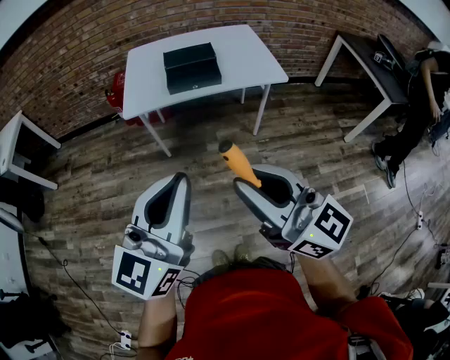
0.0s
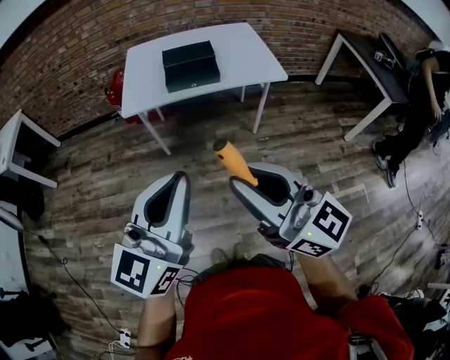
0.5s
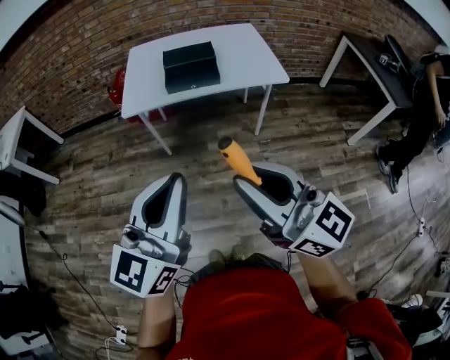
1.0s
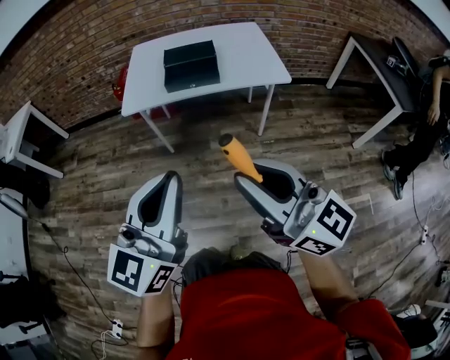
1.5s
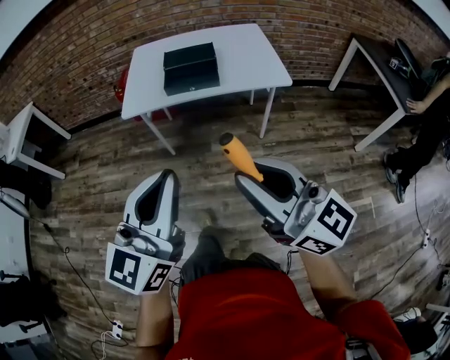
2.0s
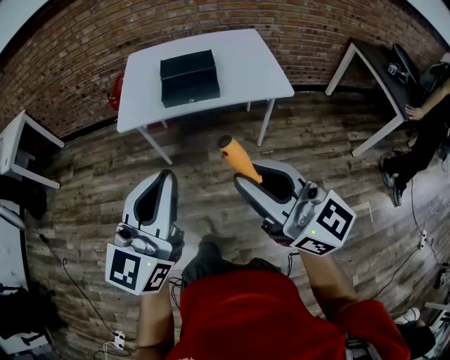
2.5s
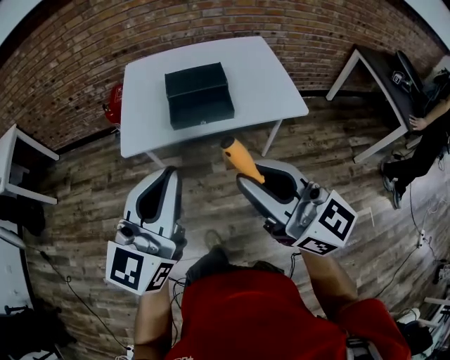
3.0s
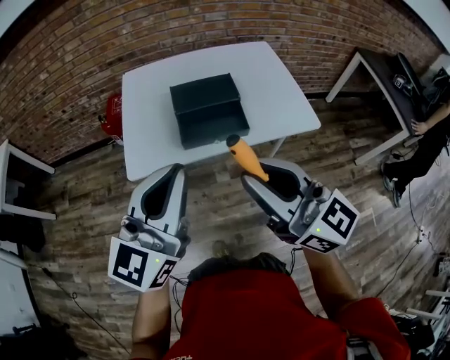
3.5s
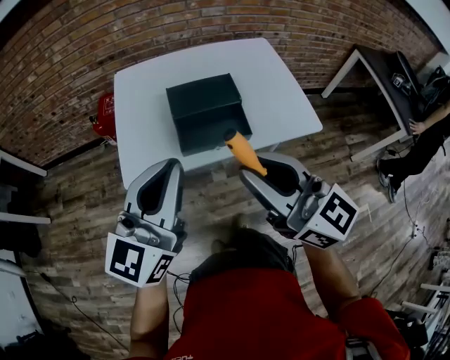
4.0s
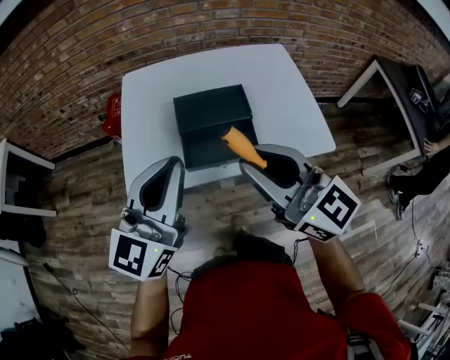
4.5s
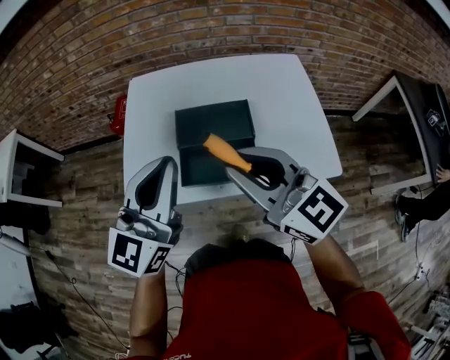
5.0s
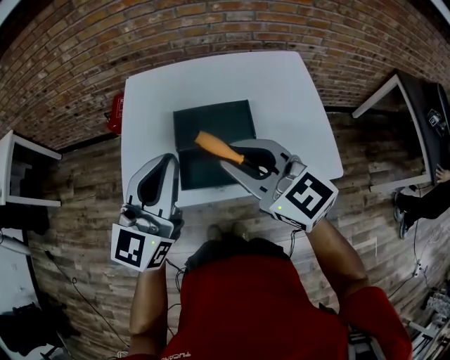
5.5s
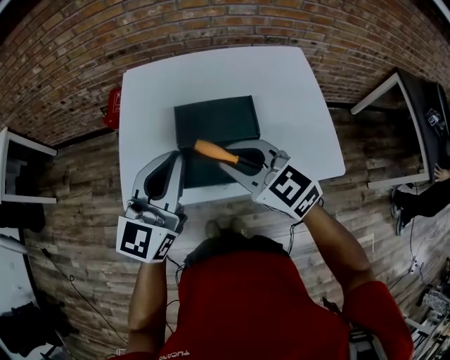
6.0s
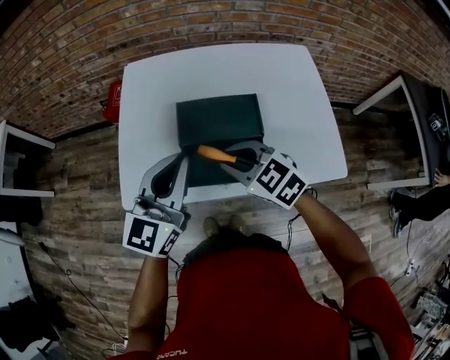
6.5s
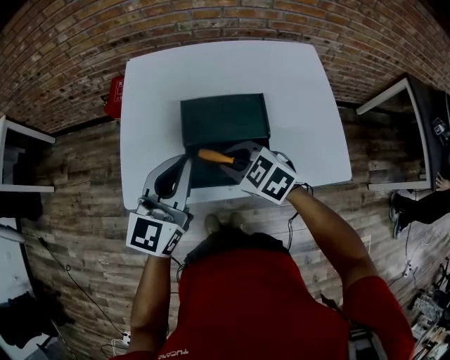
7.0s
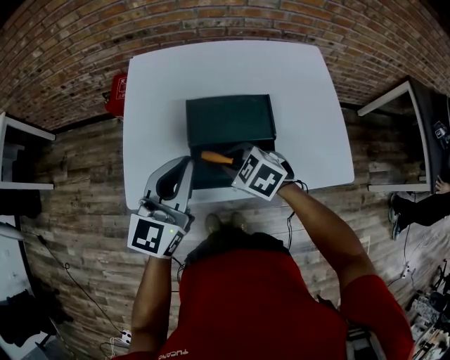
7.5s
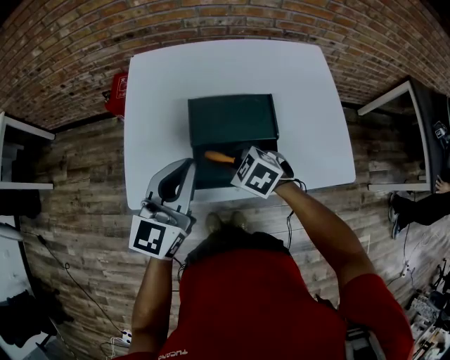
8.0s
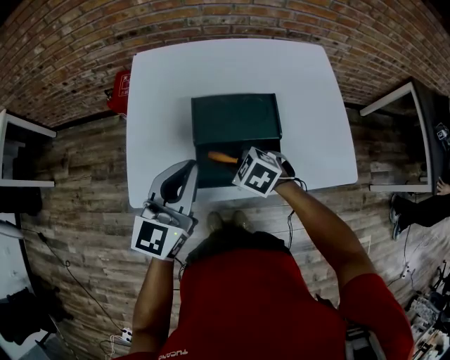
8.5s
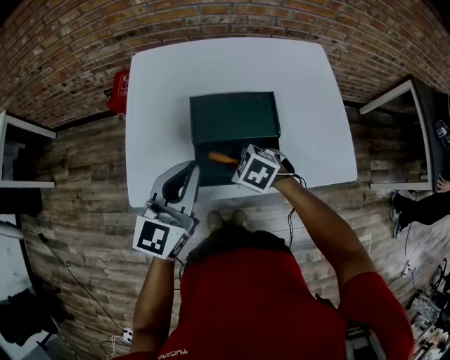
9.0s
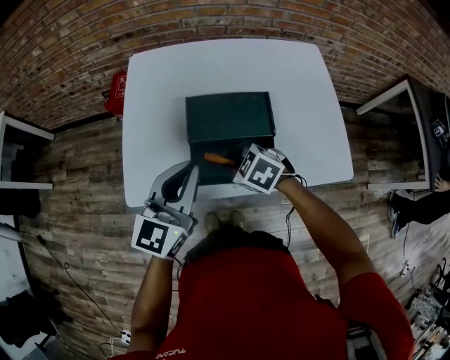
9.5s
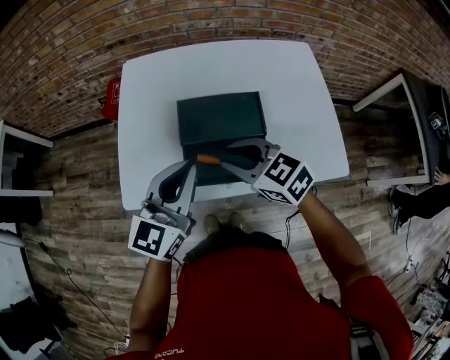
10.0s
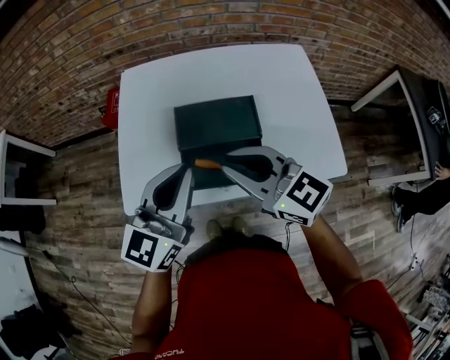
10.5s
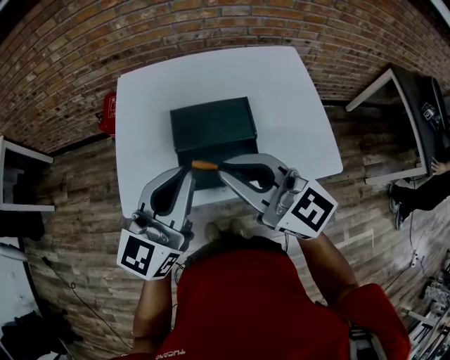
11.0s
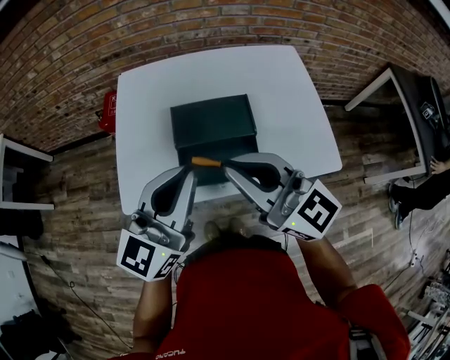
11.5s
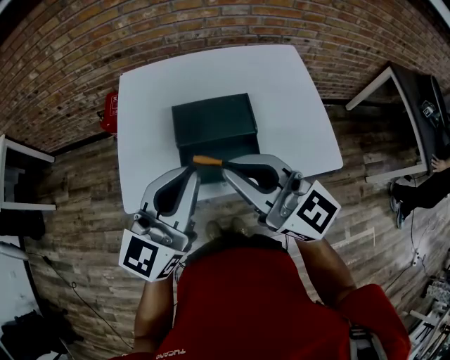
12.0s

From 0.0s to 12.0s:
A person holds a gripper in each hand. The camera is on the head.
From 0.0s to 2.0s: The two grippers go some 10 cm to the right.
From 2.0s to 4.0s: The two grippers go about 40 cm forward.
From 4.0s to 6.0s: The left gripper travels forward by roughly 20 cm, while the right gripper moves forward and downward, some 25 cm, and rotates about 40 degrees.
From 6.0s to 8.0s: The left gripper heads downward, covering about 5 cm; the right gripper moves downward, some 20 cm, and points its fingers approximately 30 degrees further downward.
From 8.0s to 10.0s: The right gripper goes about 10 cm upward, and changes its angle by some 30 degrees.
From 10.0s to 12.0s: The left gripper heads upward and backward, covering roughly 10 cm. Meanwhile the right gripper moves upward and backward, roughly 15 cm, and angles its fingers upward, by some 40 degrees.

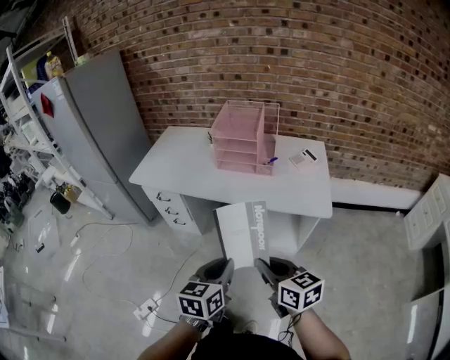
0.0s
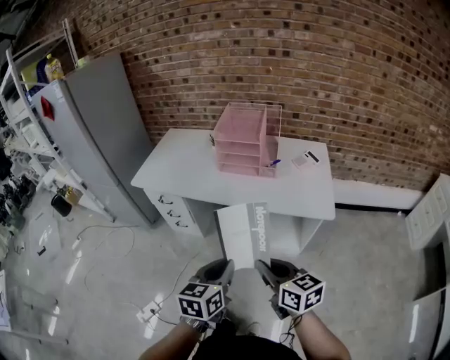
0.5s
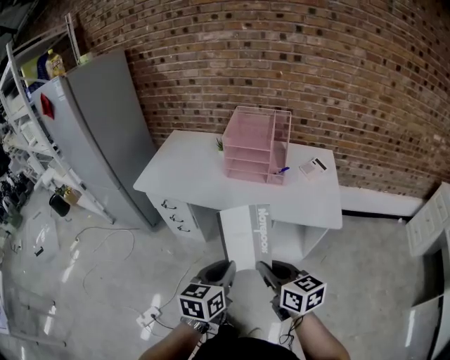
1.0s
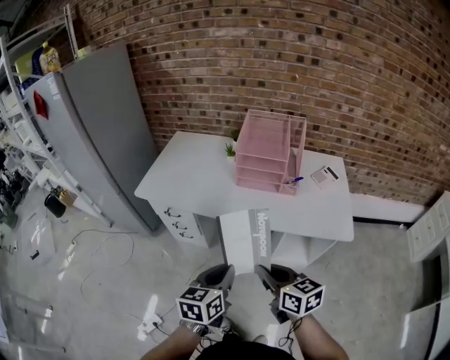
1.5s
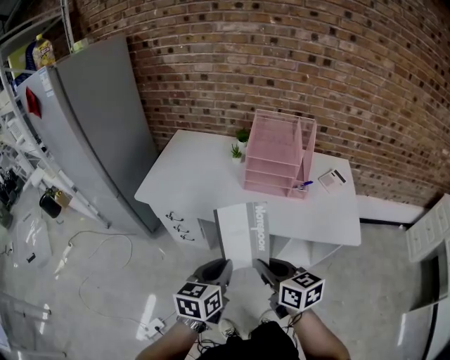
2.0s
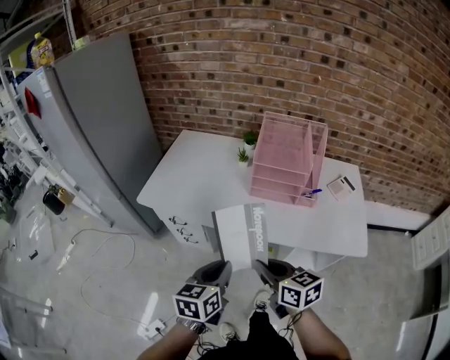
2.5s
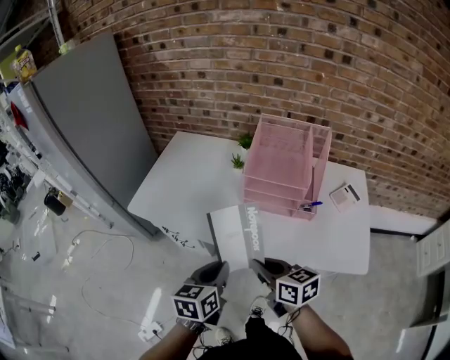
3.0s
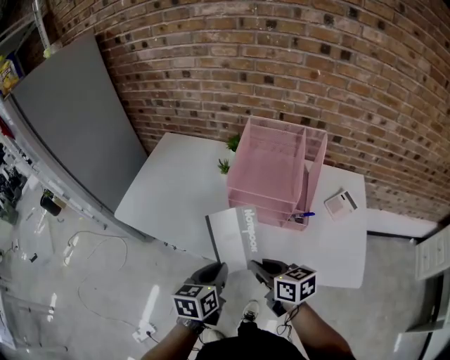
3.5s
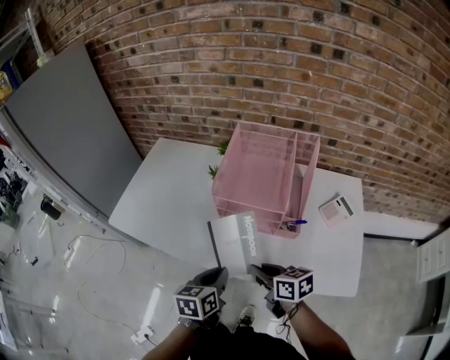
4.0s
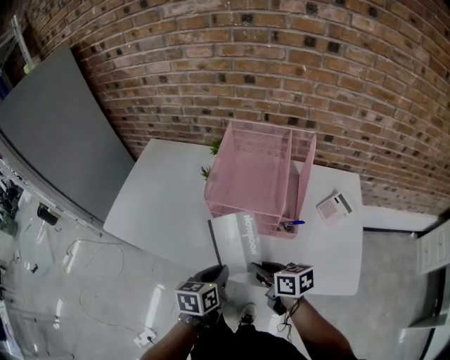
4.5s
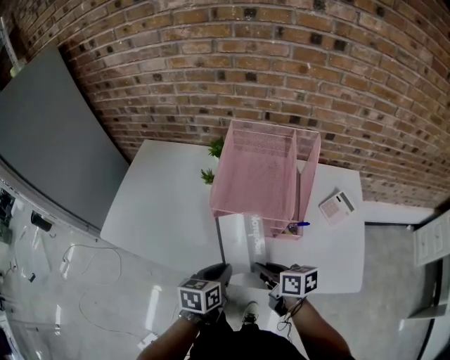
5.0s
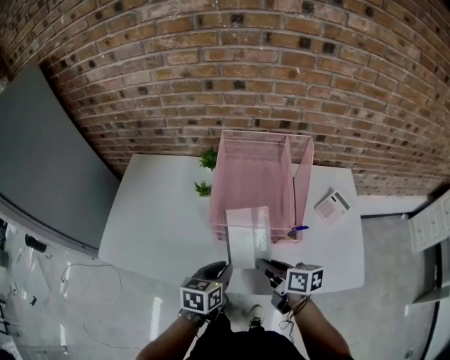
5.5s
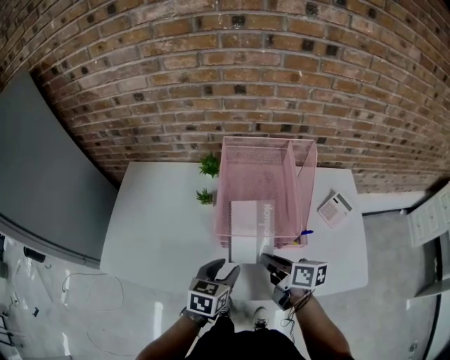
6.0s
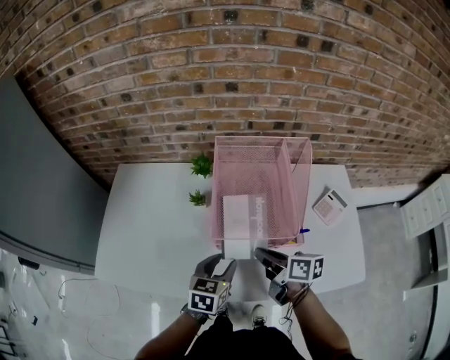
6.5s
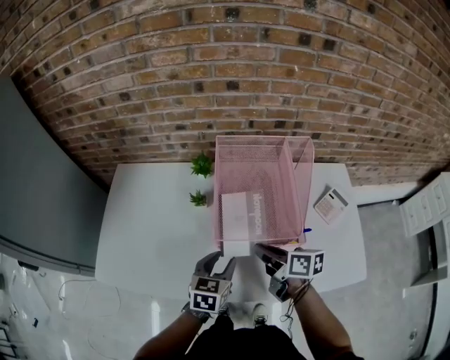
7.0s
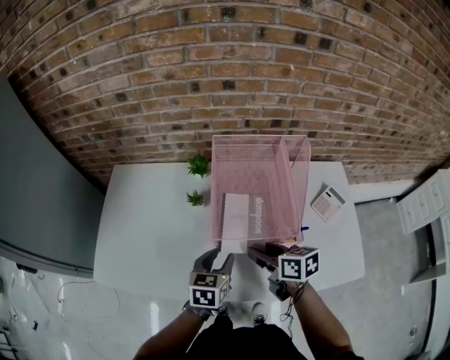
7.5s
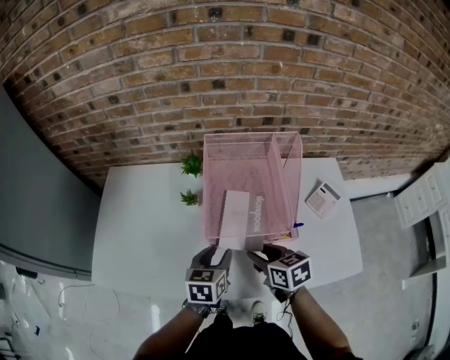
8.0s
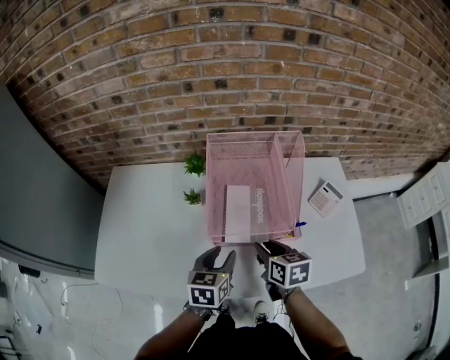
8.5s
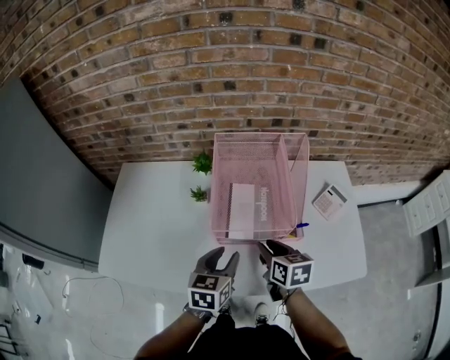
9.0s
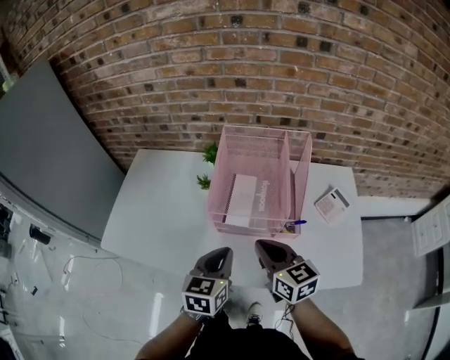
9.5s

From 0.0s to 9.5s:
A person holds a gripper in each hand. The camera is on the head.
From 0.0s to 2.0s: The grippers both shift forward and to the left by some 25 cm.
From 2.0s to 4.0s: Both grippers travel together forward, to the right and downward, approximately 25 cm.
From 4.0s to 5.5s: The two grippers go roughly 10 cm forward. The right gripper turns by approximately 20 degrees.
From 5.5s to 7.5s: The two grippers go about 10 cm forward. The right gripper opens up. Meanwhile the left gripper opens its fingers.
From 7.5s to 9.5s: Both grippers travel together upward and backward, roughly 10 cm. The left gripper closes up. Meanwhile the right gripper rotates roughly 30 degrees, and closes.

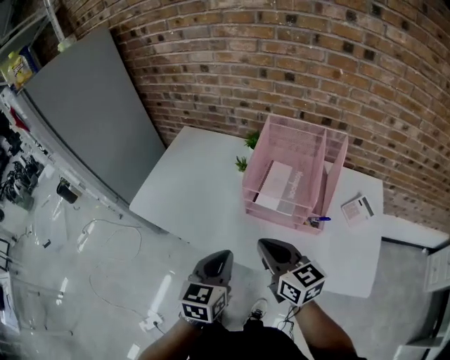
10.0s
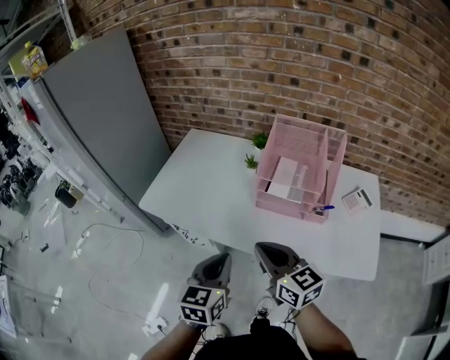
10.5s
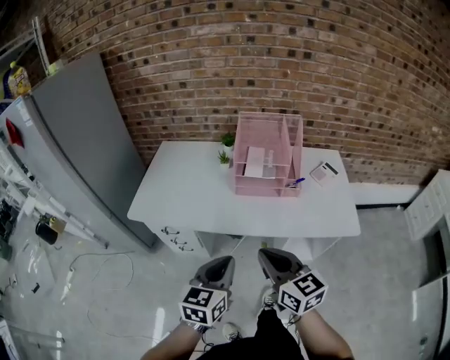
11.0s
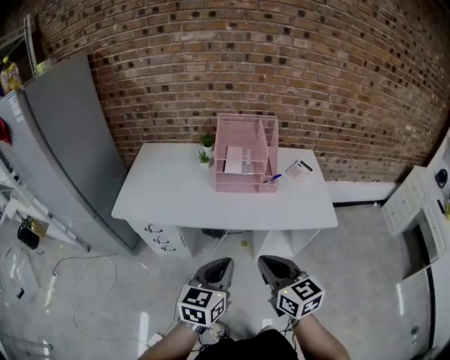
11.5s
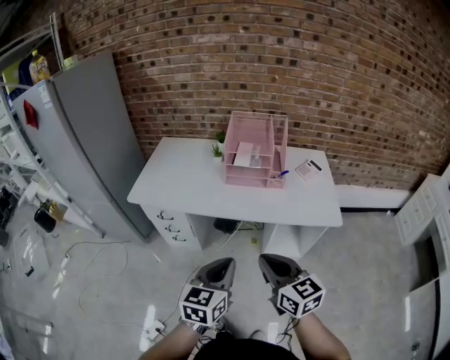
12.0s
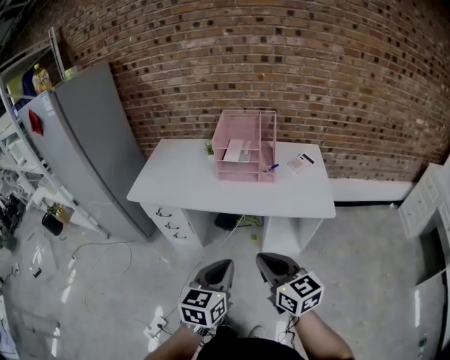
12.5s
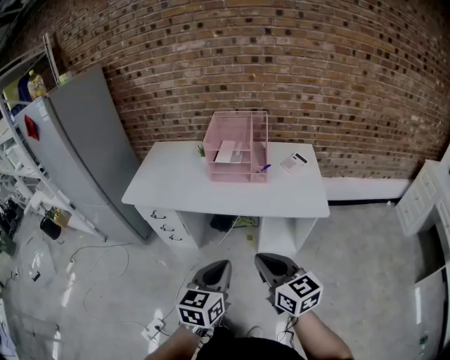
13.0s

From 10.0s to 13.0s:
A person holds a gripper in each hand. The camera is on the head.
From 10.0s to 11.5s: The grippers both shift backward by roughly 25 cm. The left gripper rotates some 30 degrees. The right gripper swivels some 20 degrees.
From 11.5s to 13.0s: The two grippers go roughly 15 cm backward and to the right.

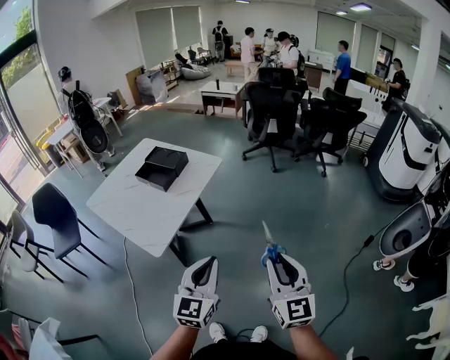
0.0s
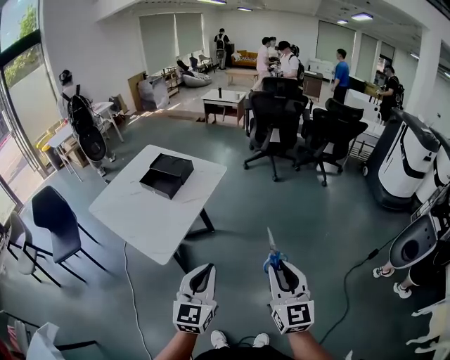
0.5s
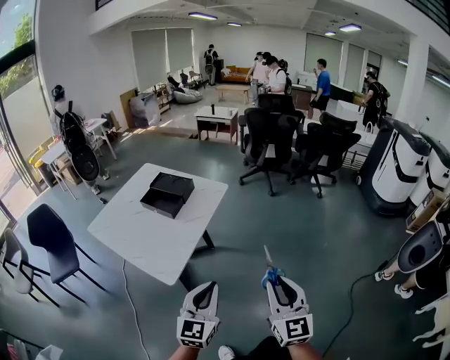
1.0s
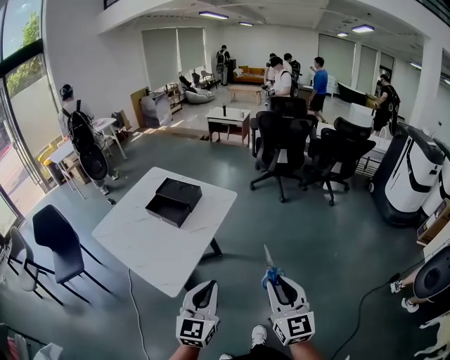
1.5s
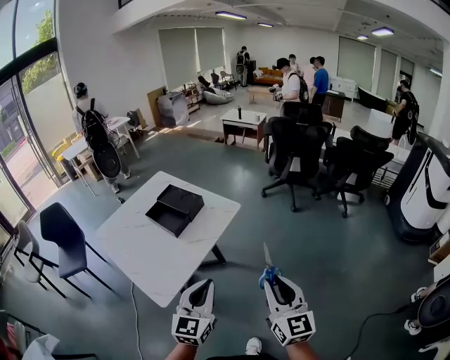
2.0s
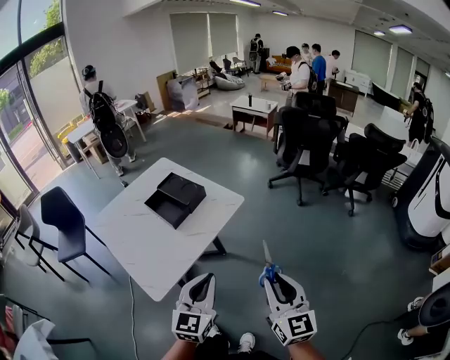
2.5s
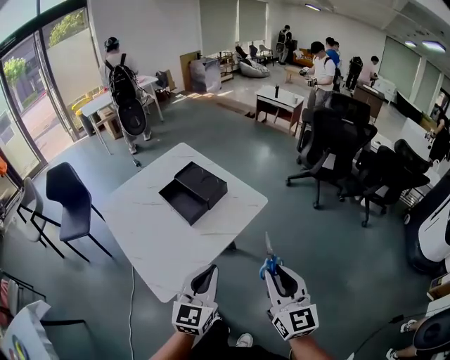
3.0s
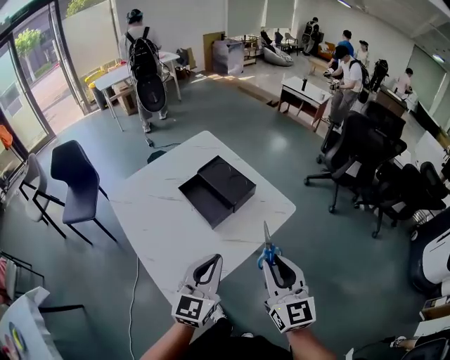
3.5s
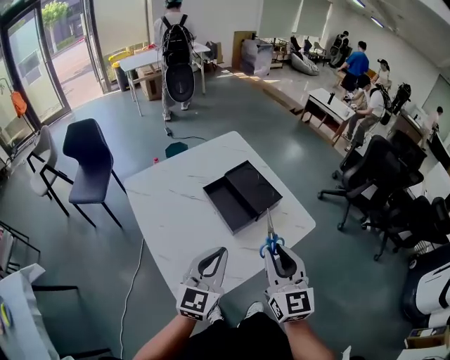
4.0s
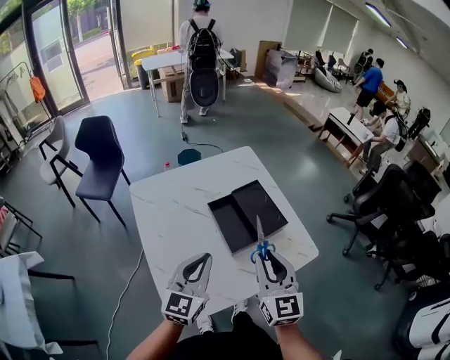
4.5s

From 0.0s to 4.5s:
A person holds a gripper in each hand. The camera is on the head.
From 0.0s to 2.0s: Both grippers travel together forward, roughly 15 cm.
From 2.0s to 4.5s: The right gripper changes place by about 50 cm, and changes its angle by about 30 degrees. Meanwhile the left gripper changes place by approximately 35 cm, and swivels some 30 degrees.
